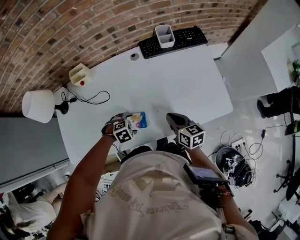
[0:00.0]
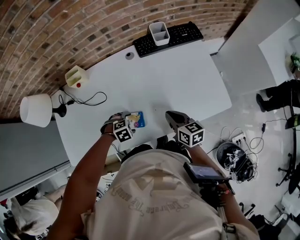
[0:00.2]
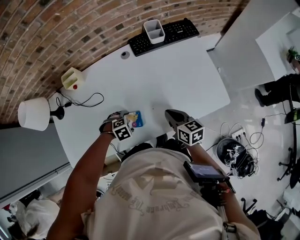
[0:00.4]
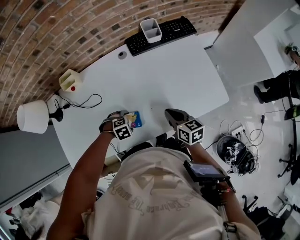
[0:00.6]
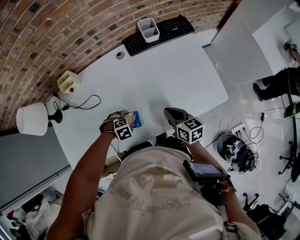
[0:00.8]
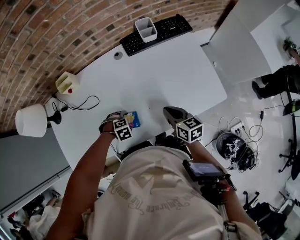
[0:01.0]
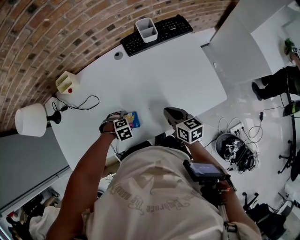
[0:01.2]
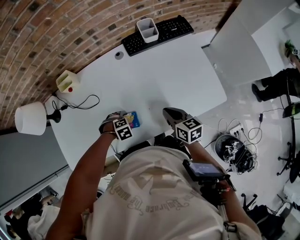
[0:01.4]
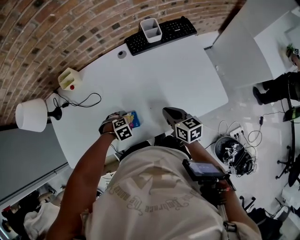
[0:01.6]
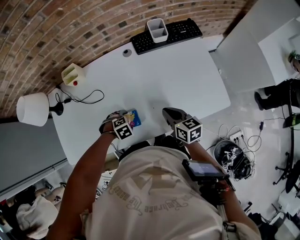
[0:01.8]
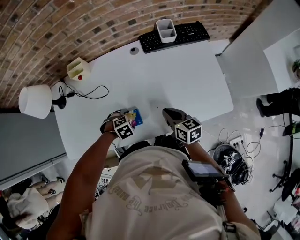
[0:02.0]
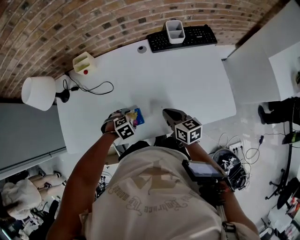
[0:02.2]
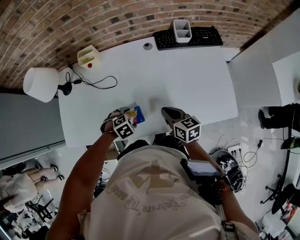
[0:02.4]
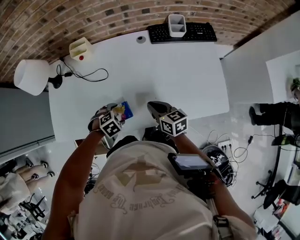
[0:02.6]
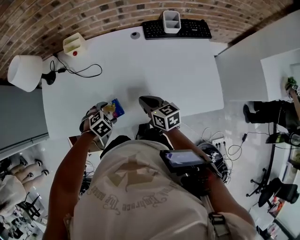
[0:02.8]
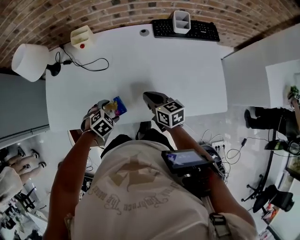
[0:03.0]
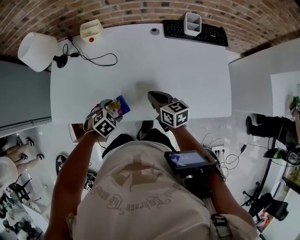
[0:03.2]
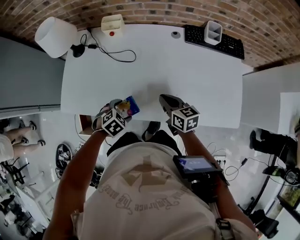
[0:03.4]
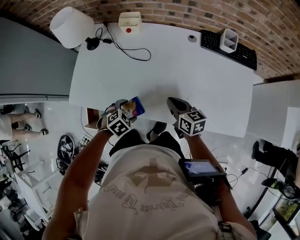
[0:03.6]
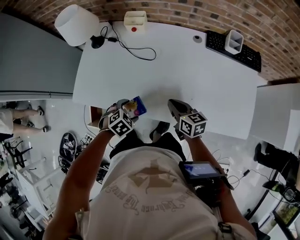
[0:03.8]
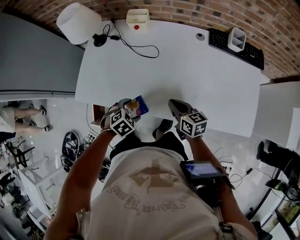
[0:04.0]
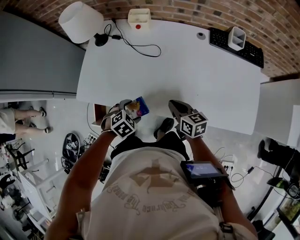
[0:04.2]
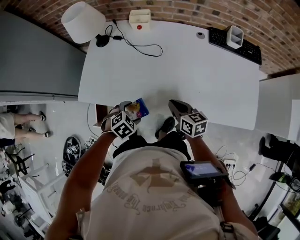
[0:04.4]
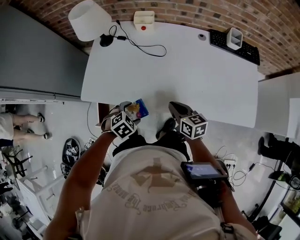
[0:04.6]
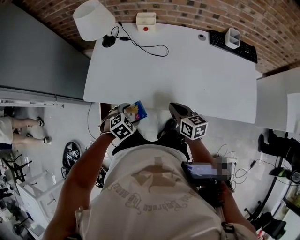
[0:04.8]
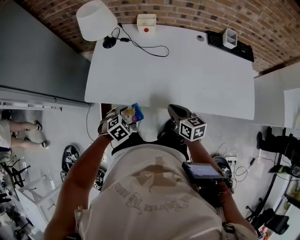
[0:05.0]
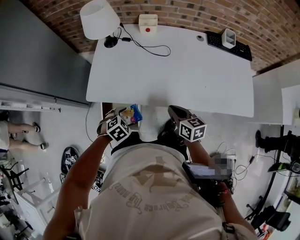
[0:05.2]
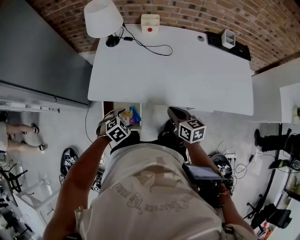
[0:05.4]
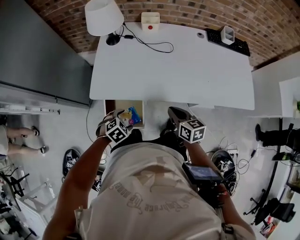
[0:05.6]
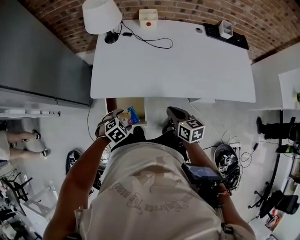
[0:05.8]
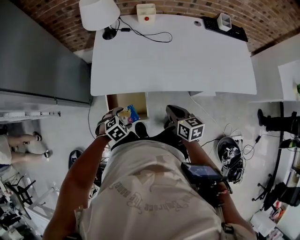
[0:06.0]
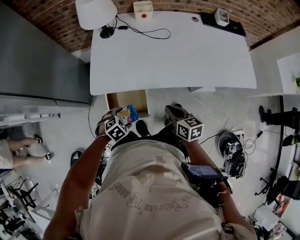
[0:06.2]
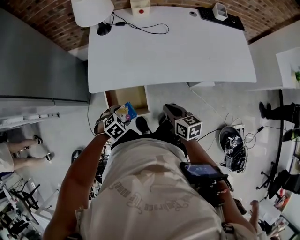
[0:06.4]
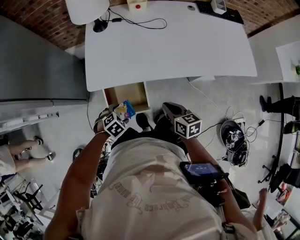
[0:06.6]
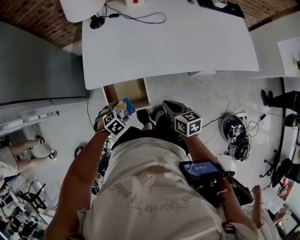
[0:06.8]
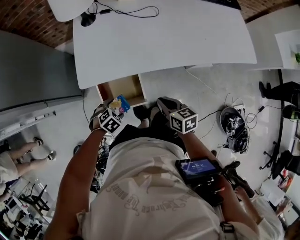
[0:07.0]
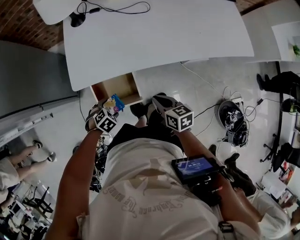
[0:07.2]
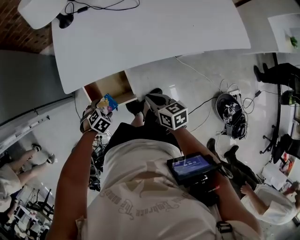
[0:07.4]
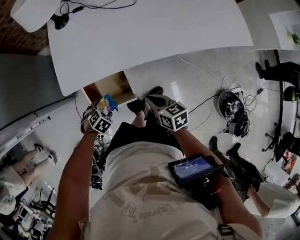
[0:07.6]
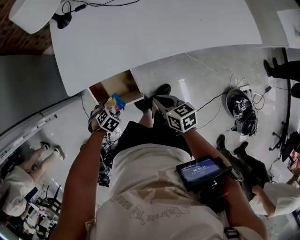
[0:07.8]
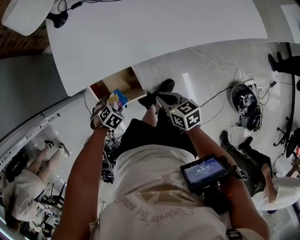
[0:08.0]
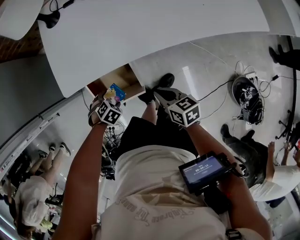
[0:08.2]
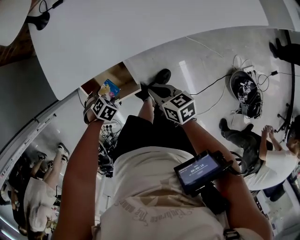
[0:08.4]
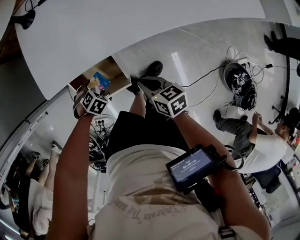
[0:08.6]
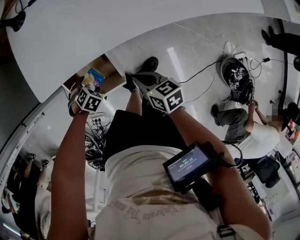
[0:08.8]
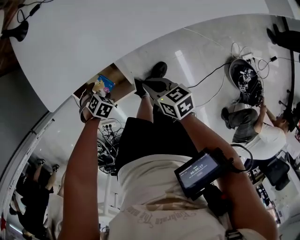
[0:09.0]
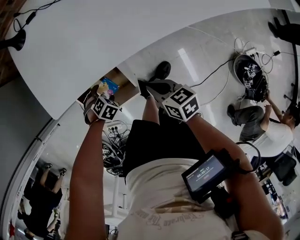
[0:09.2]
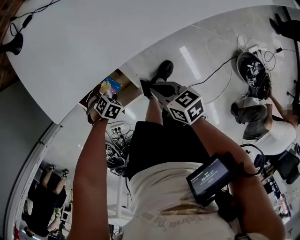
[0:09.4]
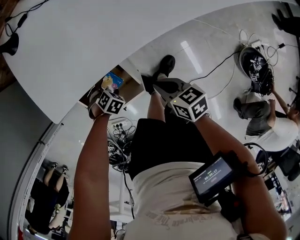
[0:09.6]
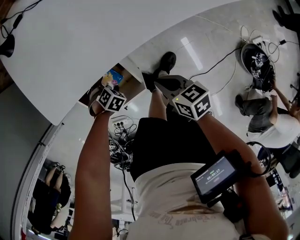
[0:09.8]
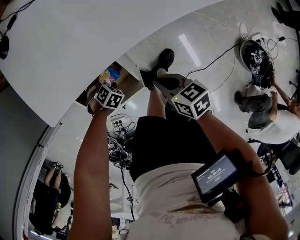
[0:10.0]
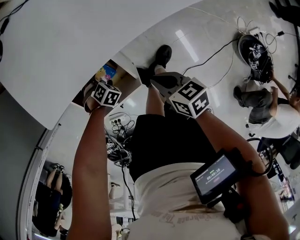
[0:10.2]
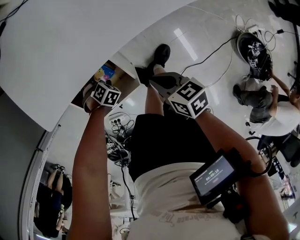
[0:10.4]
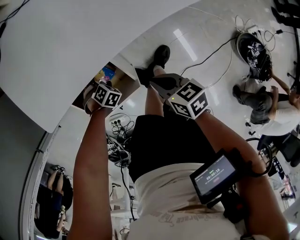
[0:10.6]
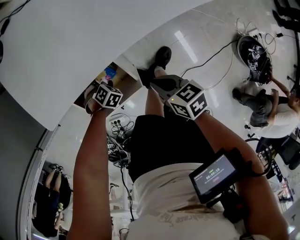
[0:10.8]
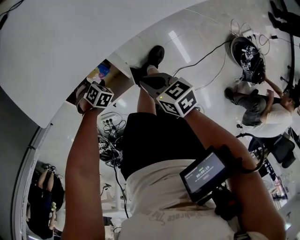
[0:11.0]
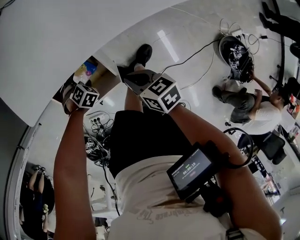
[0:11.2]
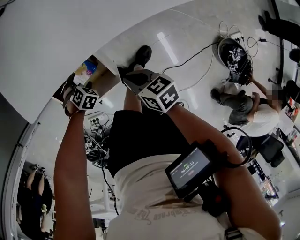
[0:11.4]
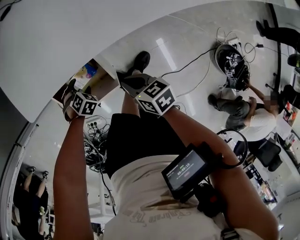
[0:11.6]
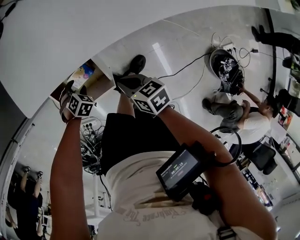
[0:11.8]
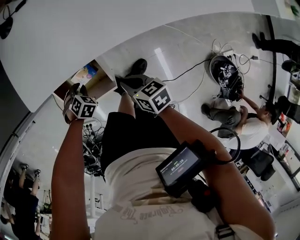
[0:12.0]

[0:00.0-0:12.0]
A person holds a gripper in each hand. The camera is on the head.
0.0 to 1.6 s: The grippers move only a little.
1.6 to 3.0 s: The right gripper ends up about 15 cm from where it was. Meanwhile the left gripper shifts by about 10 cm, and changes its angle by approximately 30 degrees.
3.0 to 4.4 s: Both grippers move to the left and backward, about 15 cm.
4.4 to 6.0 s: The left gripper is displaced to the left and backward by roughly 25 cm, while the right gripper moves backward and to the left, some 25 cm.
6.0 to 7.6 s: The two grippers go some 10 cm downward.
7.6 to 9.0 s: The grippers both shift downward by some 10 cm.
9.0 to 10.4 s: The left gripper heads downward, covering about 10 cm. The right gripper moves some 5 cm.
10.4 to 12.0 s: The left gripper is displaced upward by some 10 cm, and closes its fingers. The right gripper travels upward by roughly 5 cm.

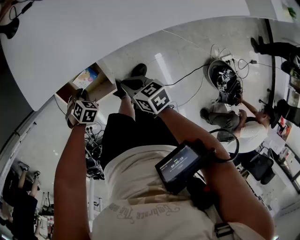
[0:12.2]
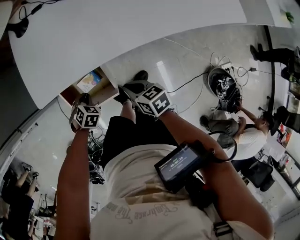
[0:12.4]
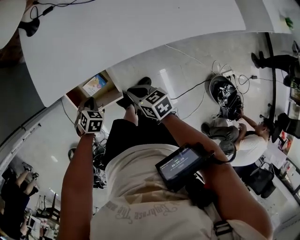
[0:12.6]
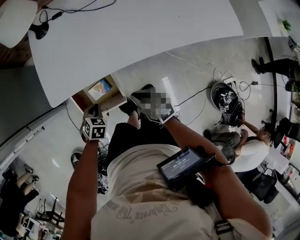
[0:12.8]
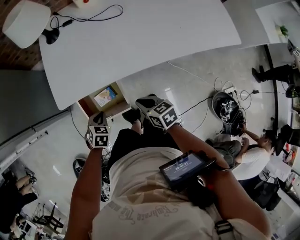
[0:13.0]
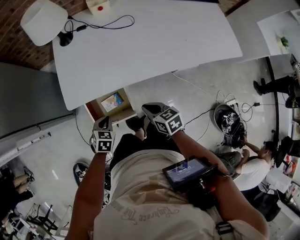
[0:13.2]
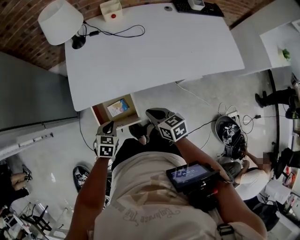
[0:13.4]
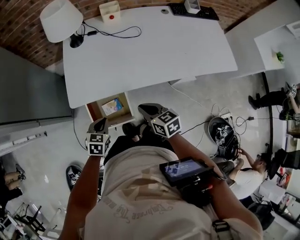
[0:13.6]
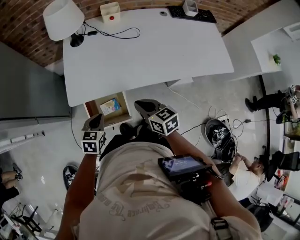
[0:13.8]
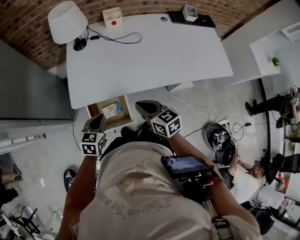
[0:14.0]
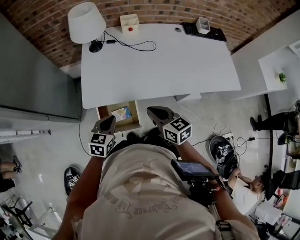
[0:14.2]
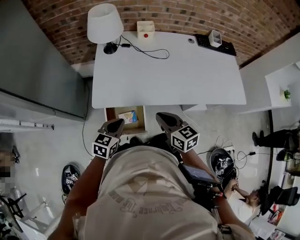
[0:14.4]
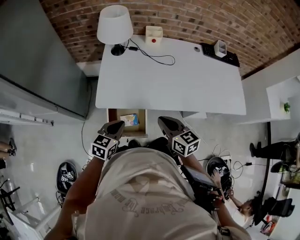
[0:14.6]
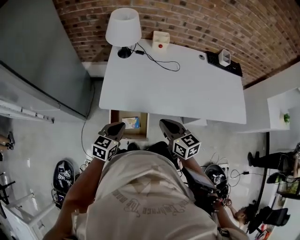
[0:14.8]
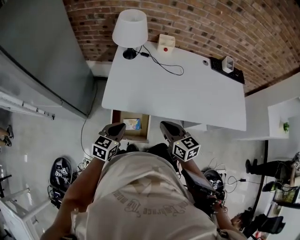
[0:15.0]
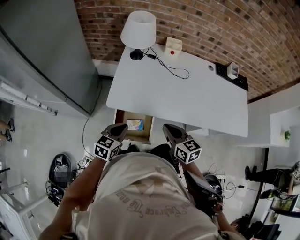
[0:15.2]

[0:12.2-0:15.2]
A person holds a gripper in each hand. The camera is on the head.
12.2 to 13.8 s: Both grippers move upward, some 20 cm. The right gripper swivels roughly 20 degrees. Meanwhile the left gripper angles its fingers upward, by some 30 degrees.
13.8 to 15.2 s: The two grippers go about 5 cm upward.

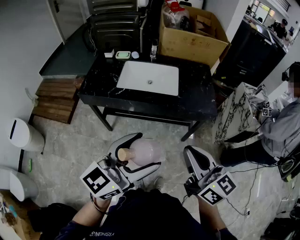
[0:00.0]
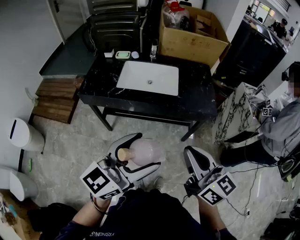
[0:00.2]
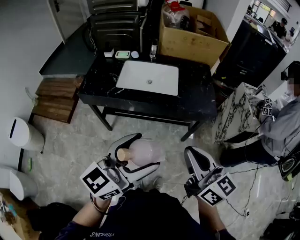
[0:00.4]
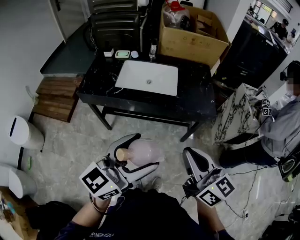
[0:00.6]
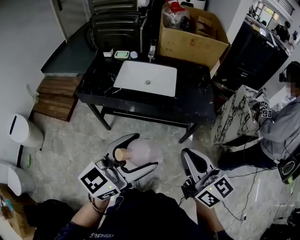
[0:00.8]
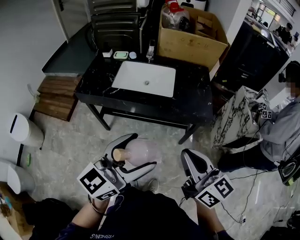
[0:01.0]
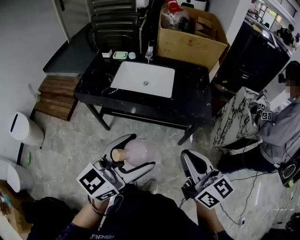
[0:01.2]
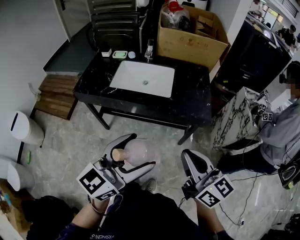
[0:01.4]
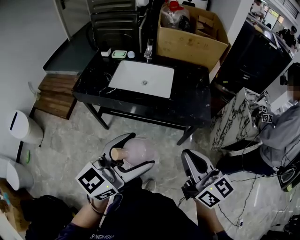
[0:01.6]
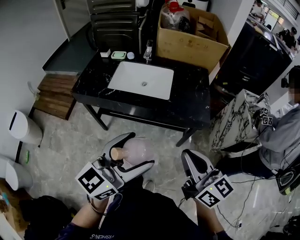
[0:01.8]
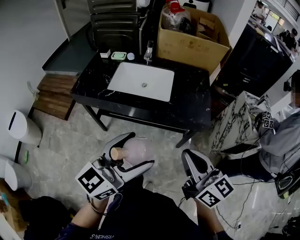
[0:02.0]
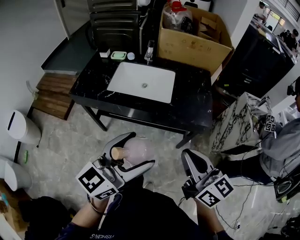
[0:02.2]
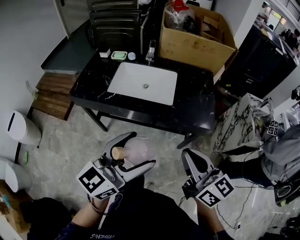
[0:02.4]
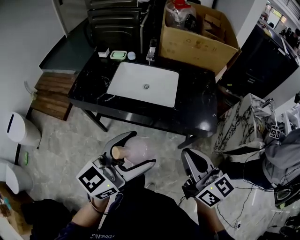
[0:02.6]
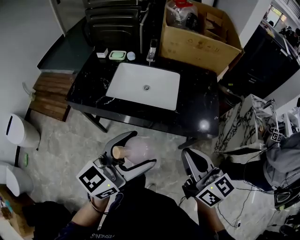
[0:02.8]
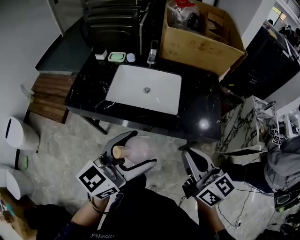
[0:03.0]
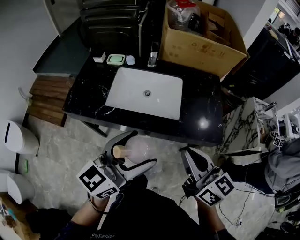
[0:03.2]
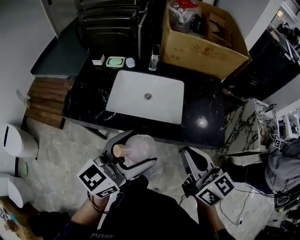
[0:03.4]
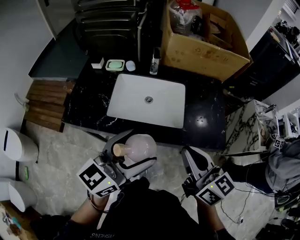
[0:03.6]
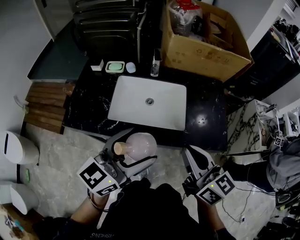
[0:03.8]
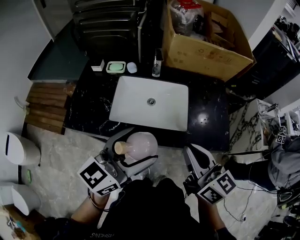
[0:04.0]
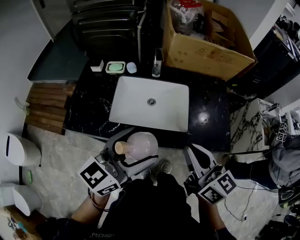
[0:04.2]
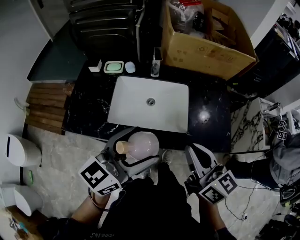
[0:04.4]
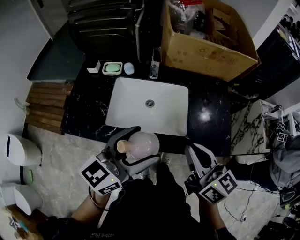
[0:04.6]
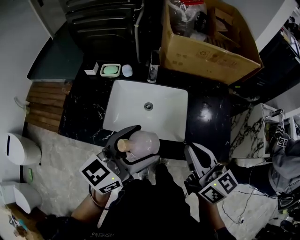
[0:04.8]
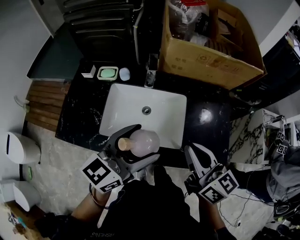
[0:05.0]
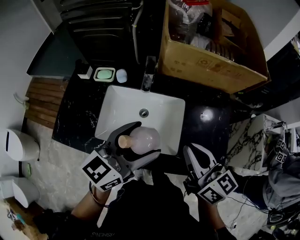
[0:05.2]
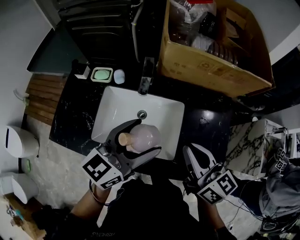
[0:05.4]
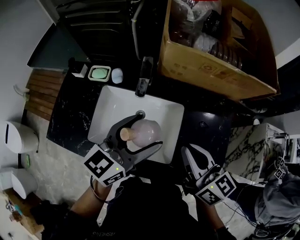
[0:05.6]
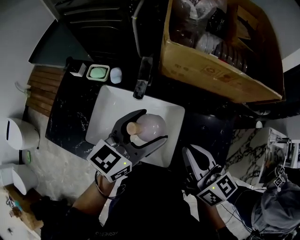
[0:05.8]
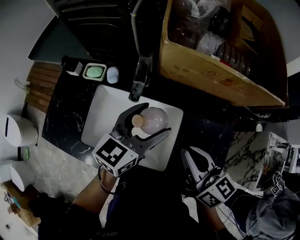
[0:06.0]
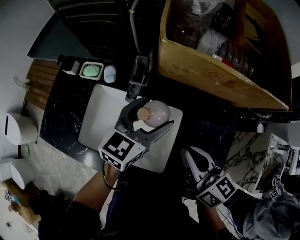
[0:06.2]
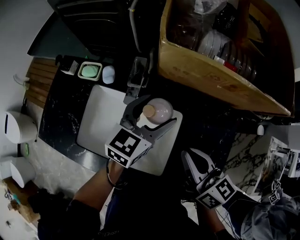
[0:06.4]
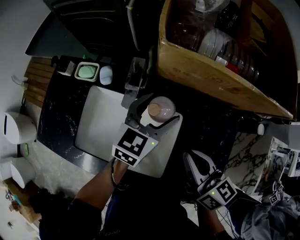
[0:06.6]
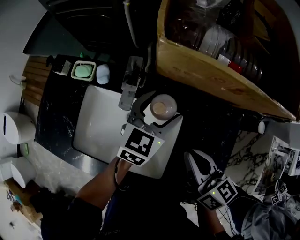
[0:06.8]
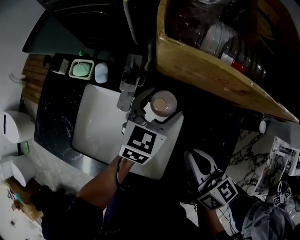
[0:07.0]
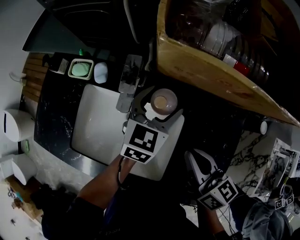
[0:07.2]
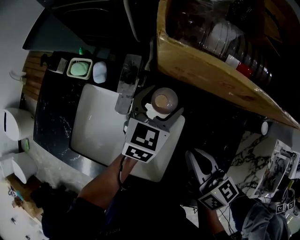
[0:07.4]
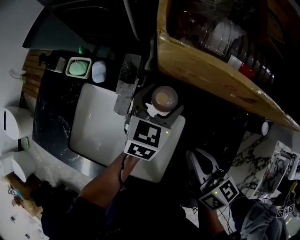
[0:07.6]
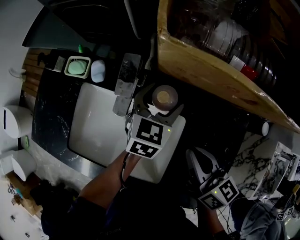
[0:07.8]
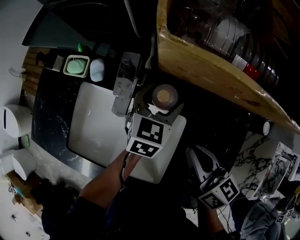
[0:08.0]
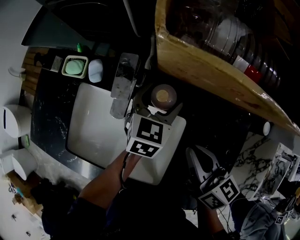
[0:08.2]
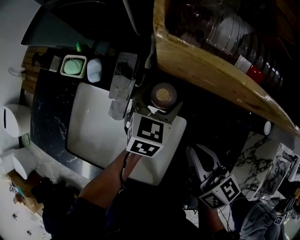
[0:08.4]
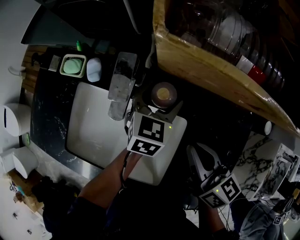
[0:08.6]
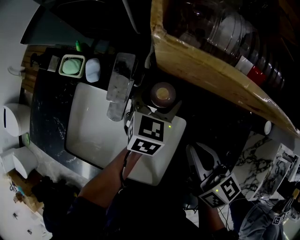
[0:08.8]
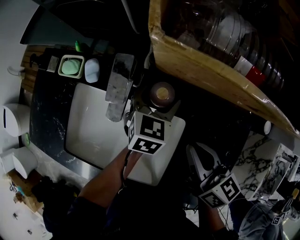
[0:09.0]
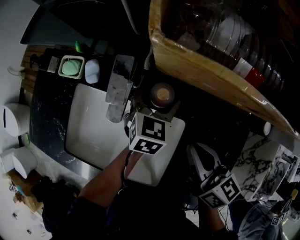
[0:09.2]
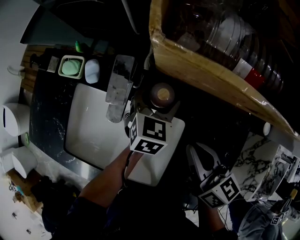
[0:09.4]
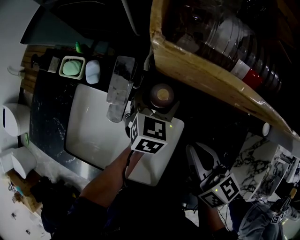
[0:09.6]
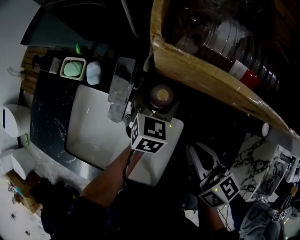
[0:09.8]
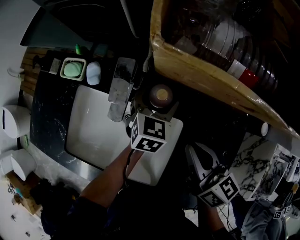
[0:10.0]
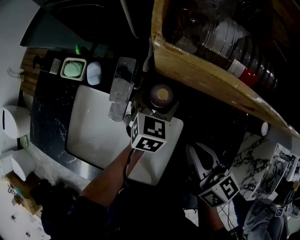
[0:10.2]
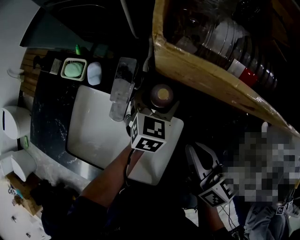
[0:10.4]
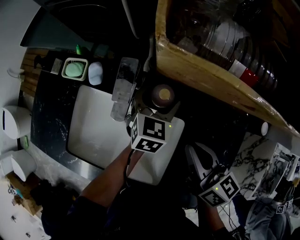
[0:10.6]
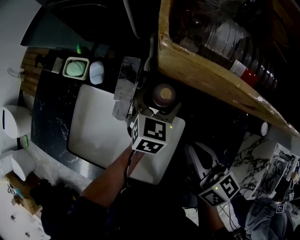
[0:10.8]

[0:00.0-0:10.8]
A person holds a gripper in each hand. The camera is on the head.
0.0 to 1.6 s: Both grippers travel together to the right, roughly 10 cm.
1.6 to 3.0 s: The left gripper is displaced forward by roughly 15 cm, while the right gripper heads forward and to the left, covering roughly 15 cm.
3.0 to 4.6 s: Both grippers travel together forward, some 15 cm.
4.6 to 6.2 s: The grippers both shift forward by approximately 25 cm. The left gripper turns by roughly 20 degrees.
6.2 to 7.8 s: The left gripper travels downward and forward by about 15 cm. Meanwhile the right gripper travels downward and forward by roughly 10 cm.
7.8 to 10.8 s: There are only small adjustments of the grippers.
